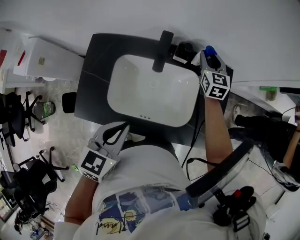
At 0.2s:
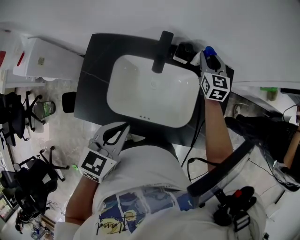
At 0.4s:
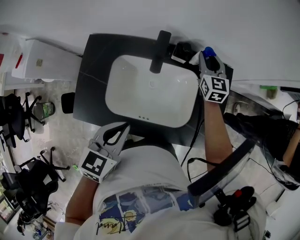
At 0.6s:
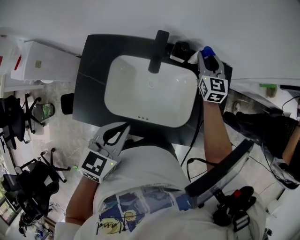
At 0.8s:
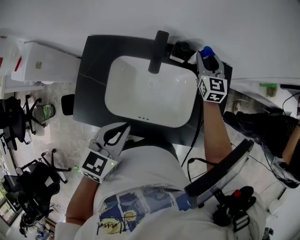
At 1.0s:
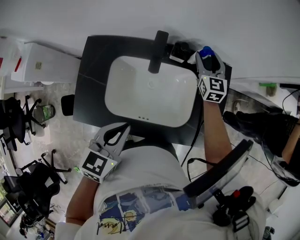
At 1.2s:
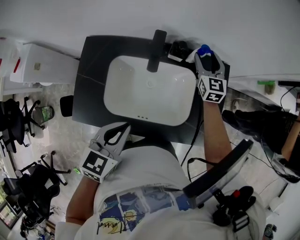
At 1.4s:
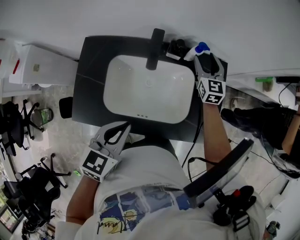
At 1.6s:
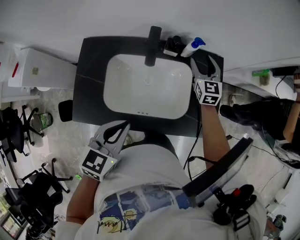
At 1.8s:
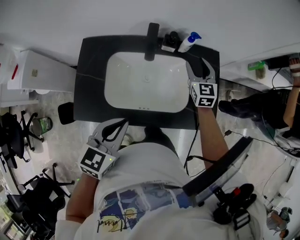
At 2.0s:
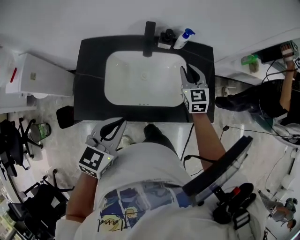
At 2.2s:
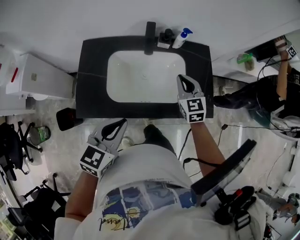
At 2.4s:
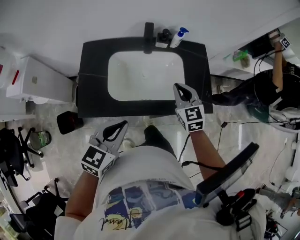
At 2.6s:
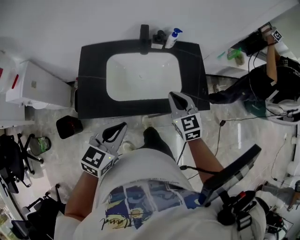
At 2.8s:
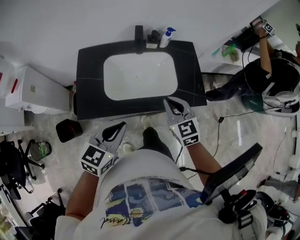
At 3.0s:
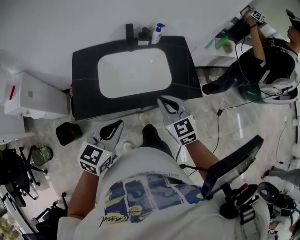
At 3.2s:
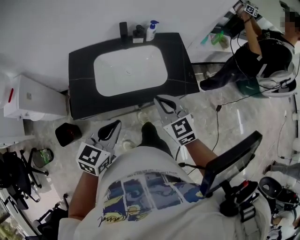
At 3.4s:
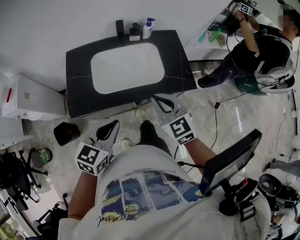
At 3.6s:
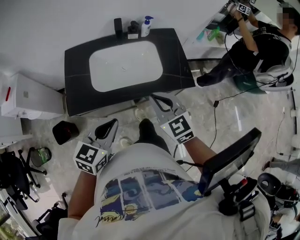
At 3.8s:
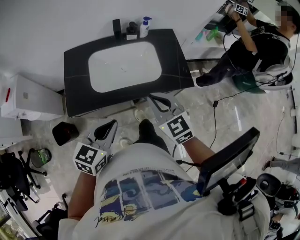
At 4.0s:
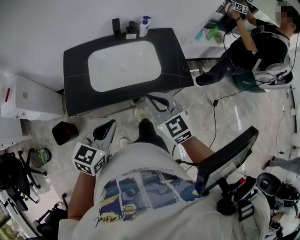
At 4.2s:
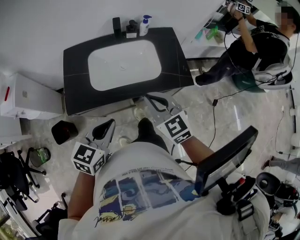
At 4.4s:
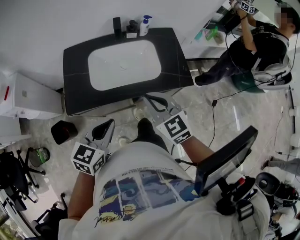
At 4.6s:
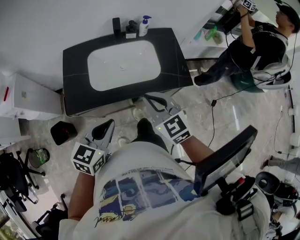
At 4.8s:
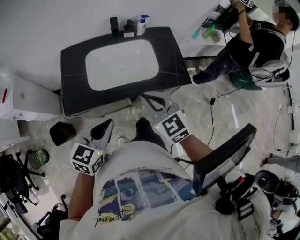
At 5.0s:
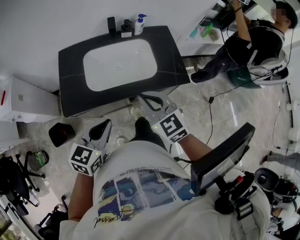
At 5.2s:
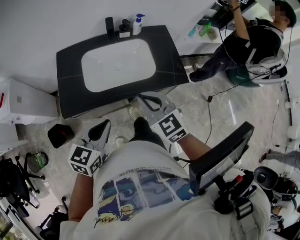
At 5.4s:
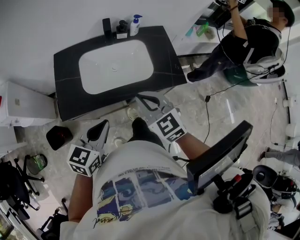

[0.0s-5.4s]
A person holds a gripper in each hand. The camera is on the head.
0.0s to 1.4s: The right gripper opens its fingers.
1.4s to 2.8s: The right gripper shifts approximately 40 cm backward, and closes up, while the left gripper travels backward by some 15 cm.
2.8s to 4.0s: The left gripper moves about 5 cm. Meanwhile the right gripper is displaced backward by some 10 cm.
4.0s to 5.4s: There are only small adjustments of the grippers.

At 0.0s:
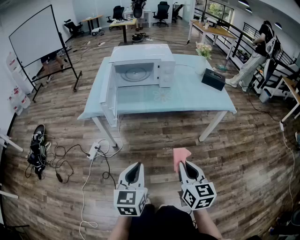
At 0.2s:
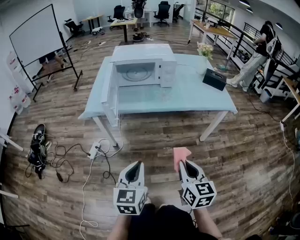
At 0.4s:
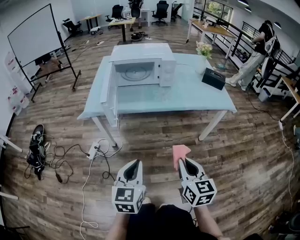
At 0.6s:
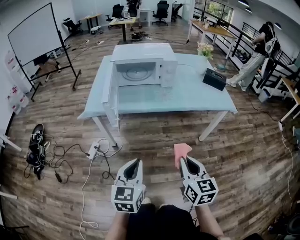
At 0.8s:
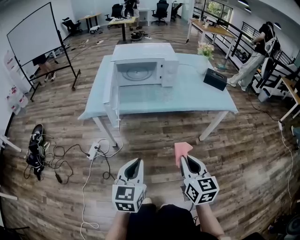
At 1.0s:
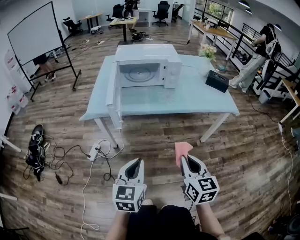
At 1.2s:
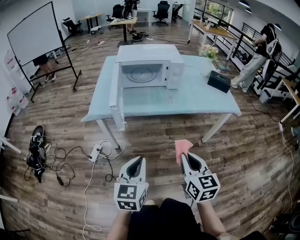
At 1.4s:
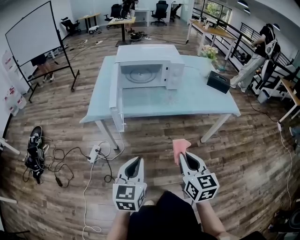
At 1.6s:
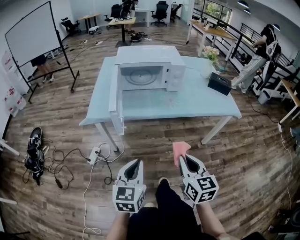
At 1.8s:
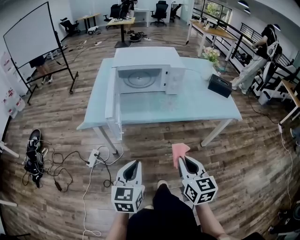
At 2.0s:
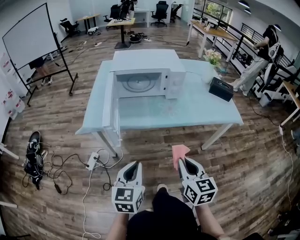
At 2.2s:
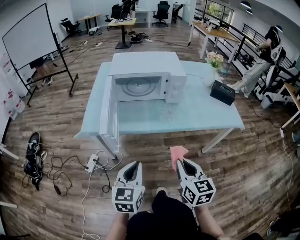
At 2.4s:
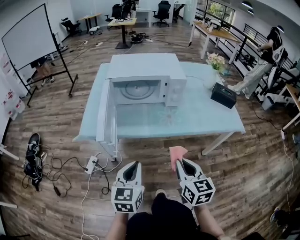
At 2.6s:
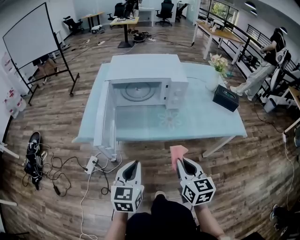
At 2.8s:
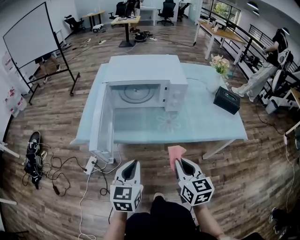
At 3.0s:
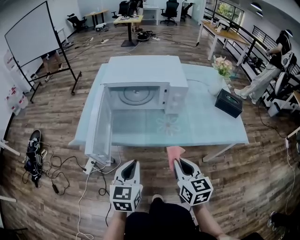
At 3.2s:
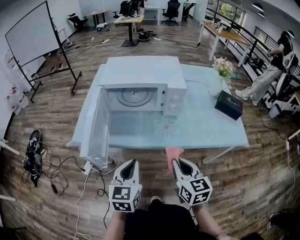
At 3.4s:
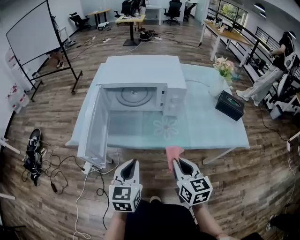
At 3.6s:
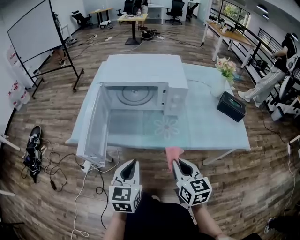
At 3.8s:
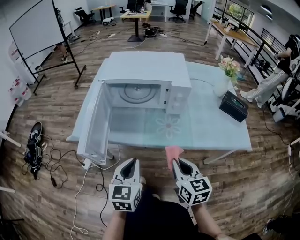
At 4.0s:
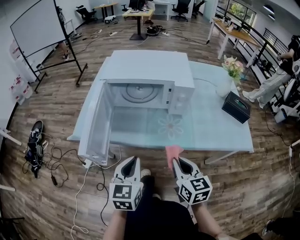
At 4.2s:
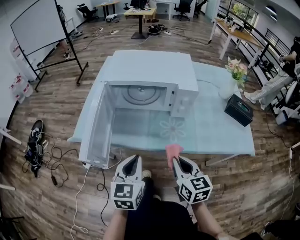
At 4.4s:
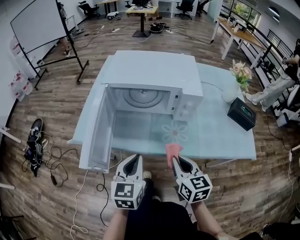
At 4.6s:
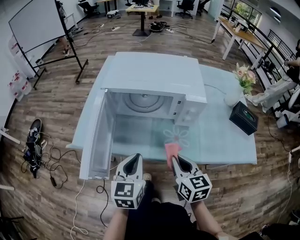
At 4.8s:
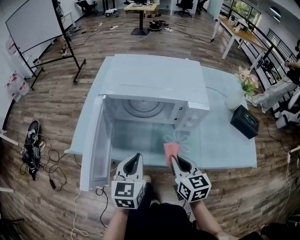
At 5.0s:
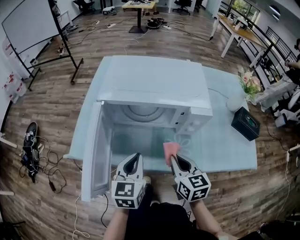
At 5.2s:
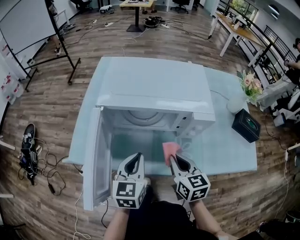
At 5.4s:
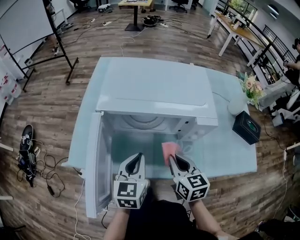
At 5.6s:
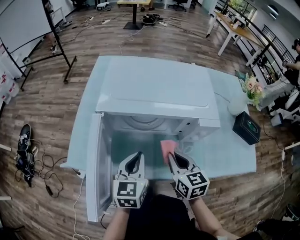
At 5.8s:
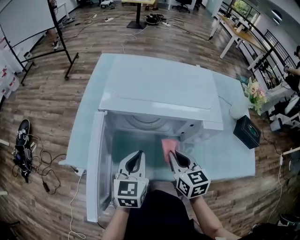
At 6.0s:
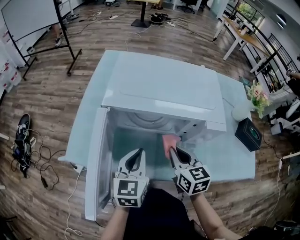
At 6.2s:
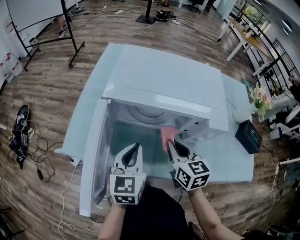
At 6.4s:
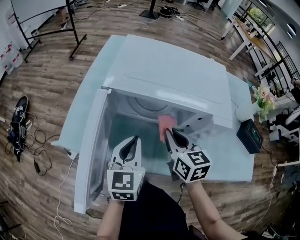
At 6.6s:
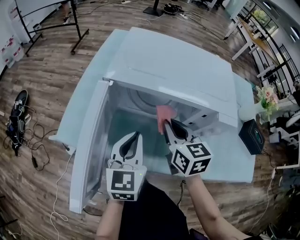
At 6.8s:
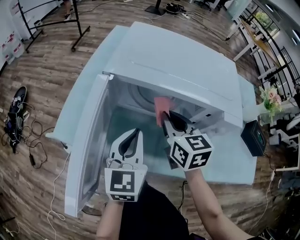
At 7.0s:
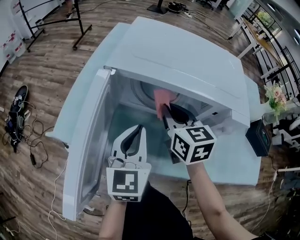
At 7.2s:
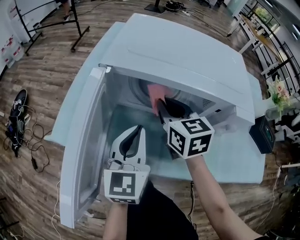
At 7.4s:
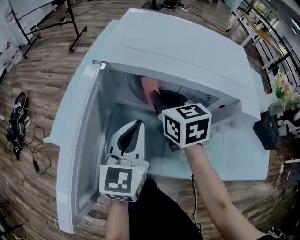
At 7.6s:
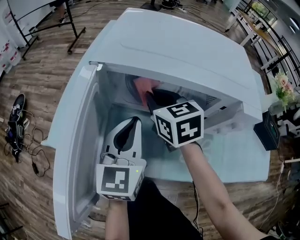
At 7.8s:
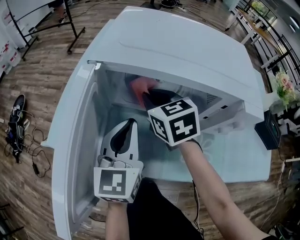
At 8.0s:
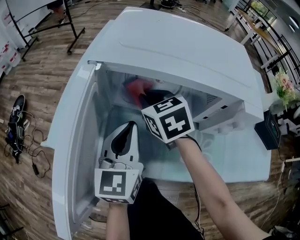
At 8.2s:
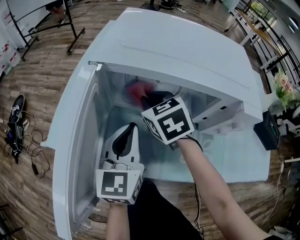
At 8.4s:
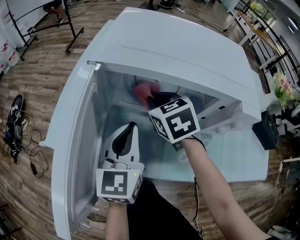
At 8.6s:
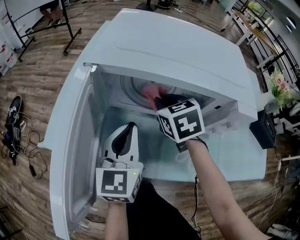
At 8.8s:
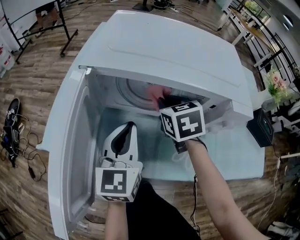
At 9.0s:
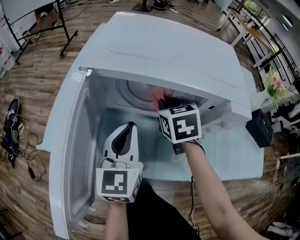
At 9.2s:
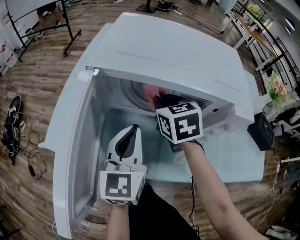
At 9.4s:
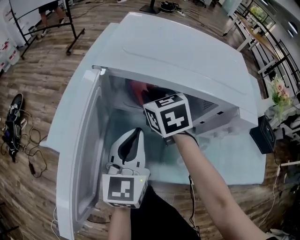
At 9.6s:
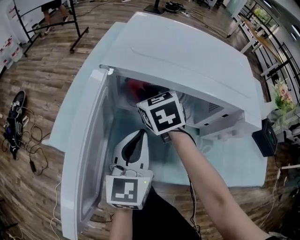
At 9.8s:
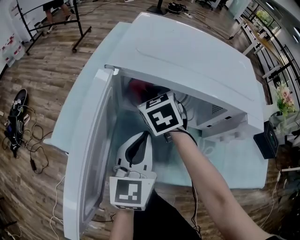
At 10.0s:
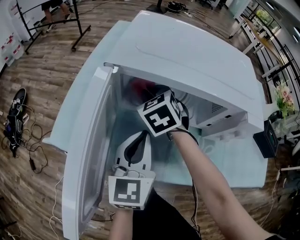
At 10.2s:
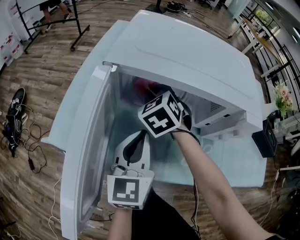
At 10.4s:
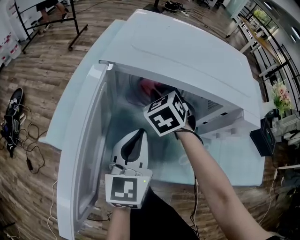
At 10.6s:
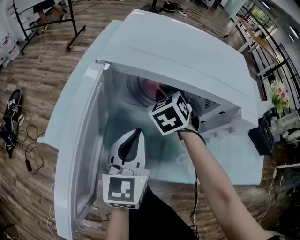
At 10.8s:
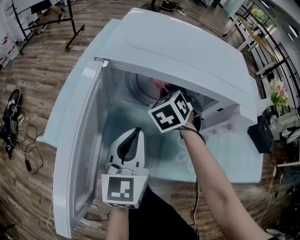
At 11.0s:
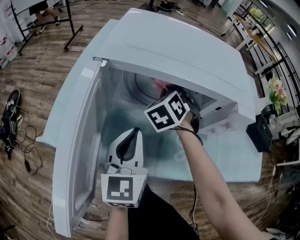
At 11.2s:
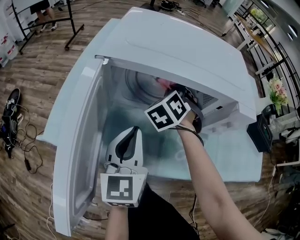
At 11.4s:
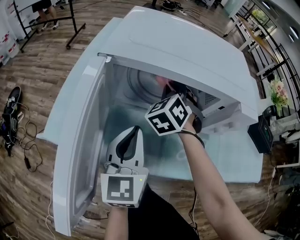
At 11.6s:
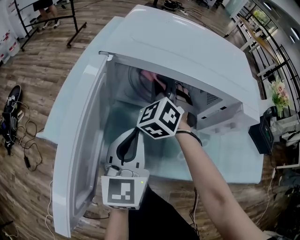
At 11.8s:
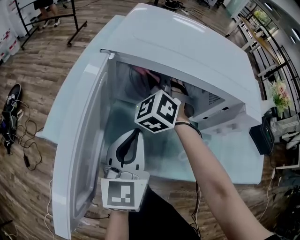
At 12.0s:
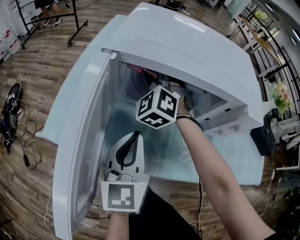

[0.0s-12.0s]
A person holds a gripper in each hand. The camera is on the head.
0.0s to 1.6s: The grippers both shift forward and to the left by roughly 10 cm.
1.6s to 3.0s: The grippers both shift forward by some 20 cm.
3.0s to 4.4s: Both grippers move forward, some 10 cm.
4.4s to 6.0s: The two grippers go roughly 20 cm forward.
6.0s to 7.6s: The left gripper is displaced forward by about 5 cm, while the right gripper heads forward and to the left, covering approximately 20 cm.
7.6s to 9.0s: The right gripper moves to the right, roughly 10 cm.
9.0s to 10.4s: The right gripper is displaced to the left by approximately 5 cm, and swivels approximately 30 degrees.
10.4s to 12.0s: The right gripper shifts about 5 cm to the left, and turns by approximately 30 degrees.

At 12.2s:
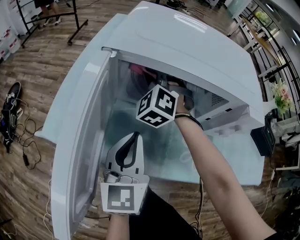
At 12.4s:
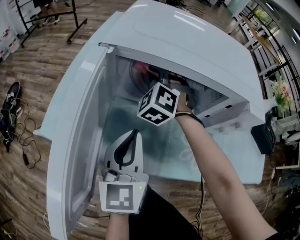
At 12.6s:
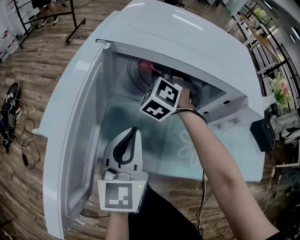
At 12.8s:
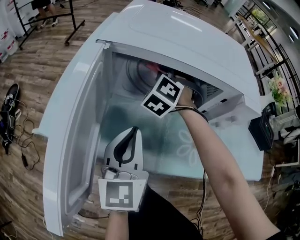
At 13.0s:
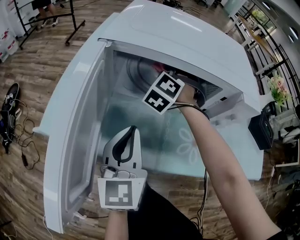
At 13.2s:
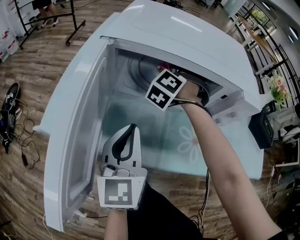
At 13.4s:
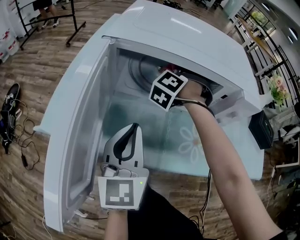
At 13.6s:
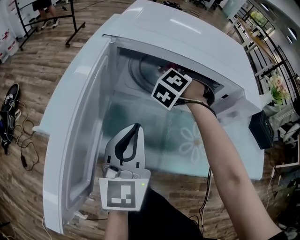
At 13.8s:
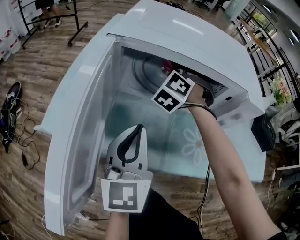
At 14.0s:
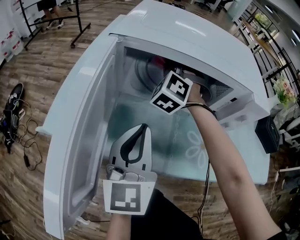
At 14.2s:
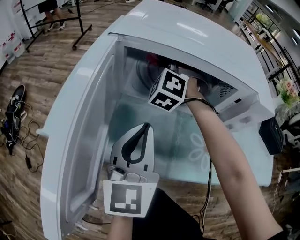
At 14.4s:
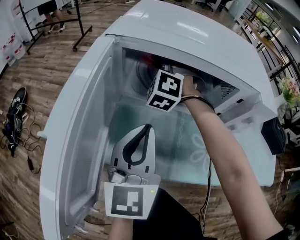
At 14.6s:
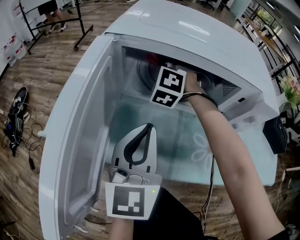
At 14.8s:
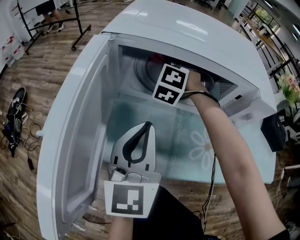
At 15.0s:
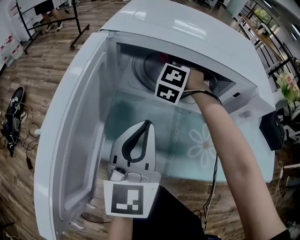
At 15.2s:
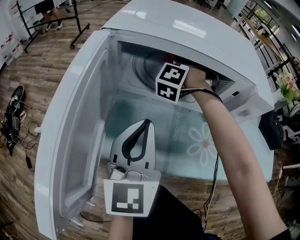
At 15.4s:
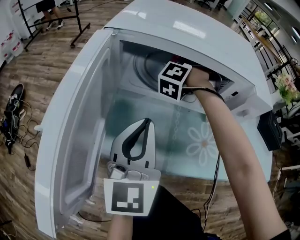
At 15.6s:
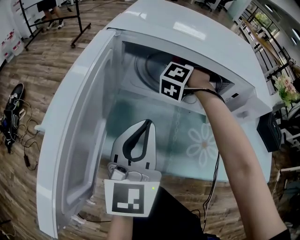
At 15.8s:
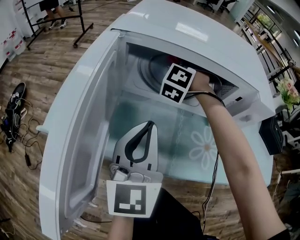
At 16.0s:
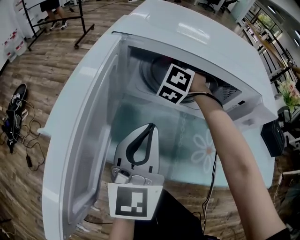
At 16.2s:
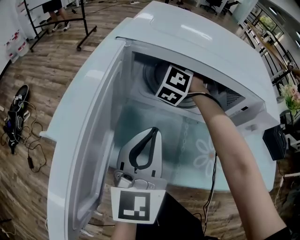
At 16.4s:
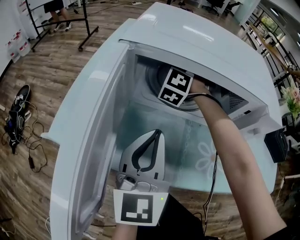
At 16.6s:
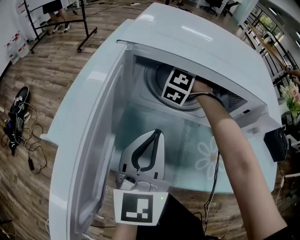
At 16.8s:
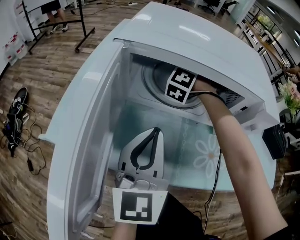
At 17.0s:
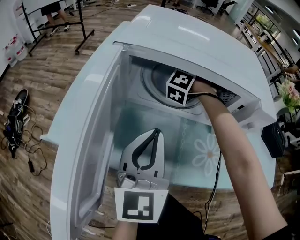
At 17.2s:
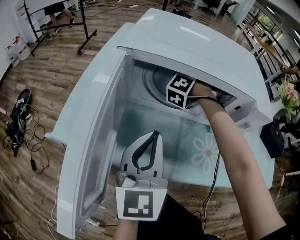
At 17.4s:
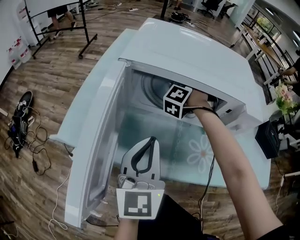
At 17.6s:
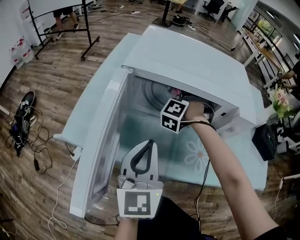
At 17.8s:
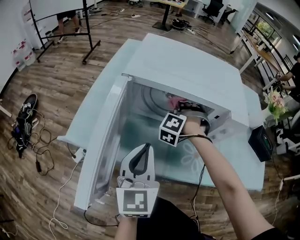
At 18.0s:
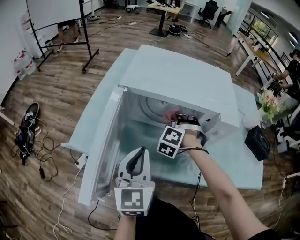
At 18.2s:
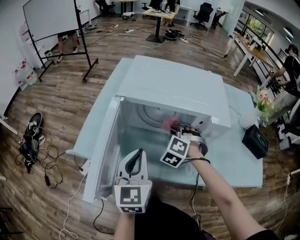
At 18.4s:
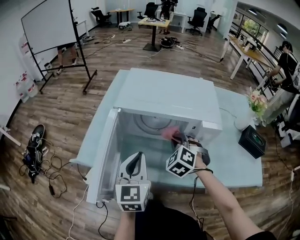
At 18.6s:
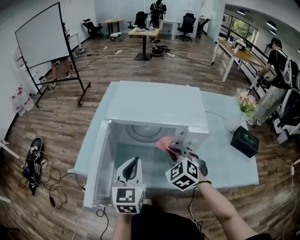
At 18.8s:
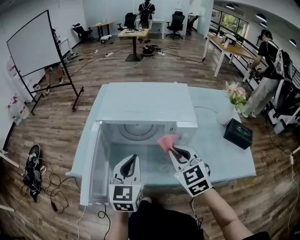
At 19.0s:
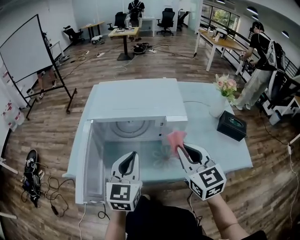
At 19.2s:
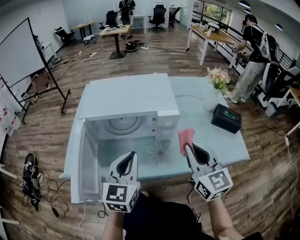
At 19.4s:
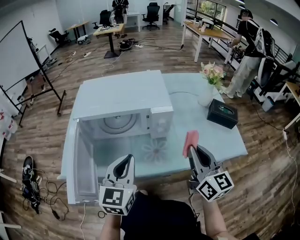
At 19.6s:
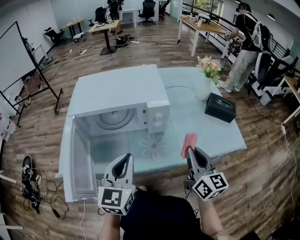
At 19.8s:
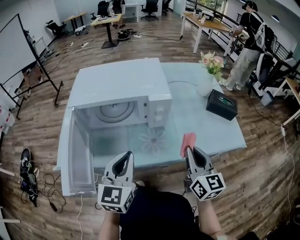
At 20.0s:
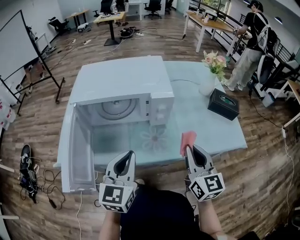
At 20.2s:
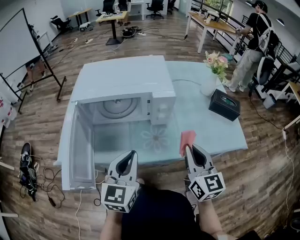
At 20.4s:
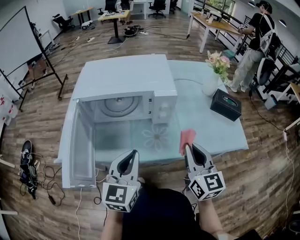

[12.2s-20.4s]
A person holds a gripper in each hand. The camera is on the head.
12.2s to 13.8s: The right gripper goes about 10 cm to the right, and swivels some 20 degrees.
13.8s to 15.4s: The right gripper goes to the left and returns, some 10 cm each way, and turns by some 30 degrees.
15.4s to 17.2s: The right gripper goes to the left and returns, roughly 10 cm each way.
17.2s to 18.8s: The left gripper travels upward and to the right by some 15 cm; the right gripper heads backward, upward and to the right, covering some 40 cm, and twists approximately 60 degrees clockwise, seen from behind.
18.8s to 20.4s: The left gripper is displaced to the right and backward by roughly 10 cm. Meanwhile the right gripper travels to the right and backward by about 15 cm, and rotates approximately 40 degrees.
